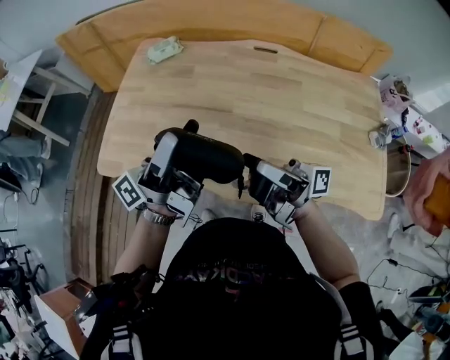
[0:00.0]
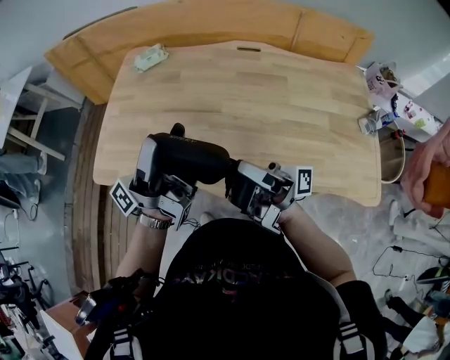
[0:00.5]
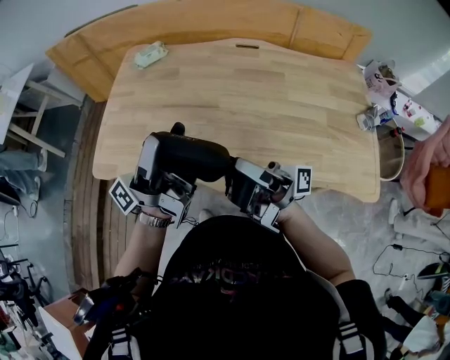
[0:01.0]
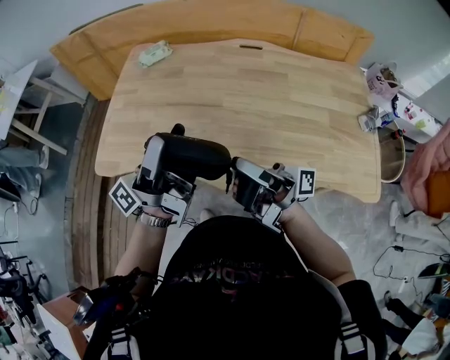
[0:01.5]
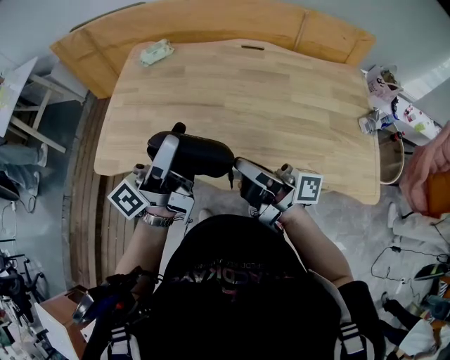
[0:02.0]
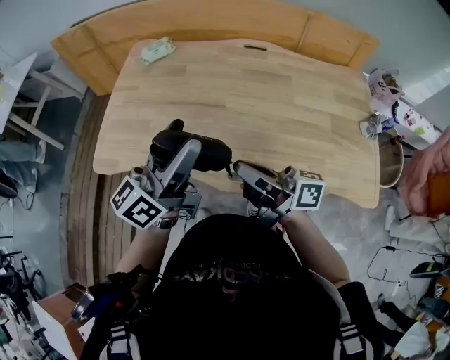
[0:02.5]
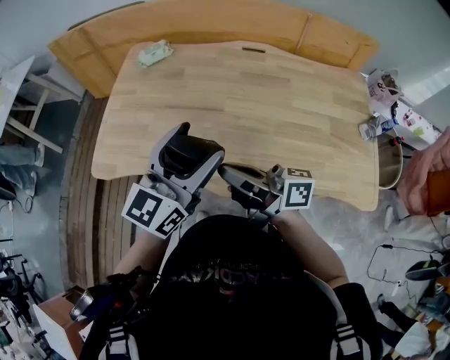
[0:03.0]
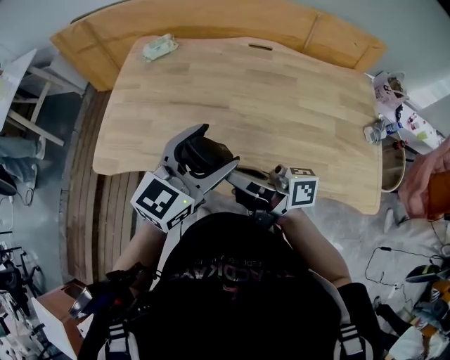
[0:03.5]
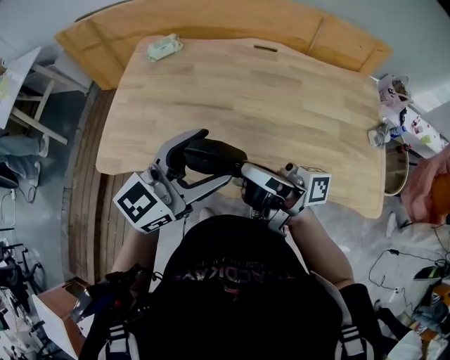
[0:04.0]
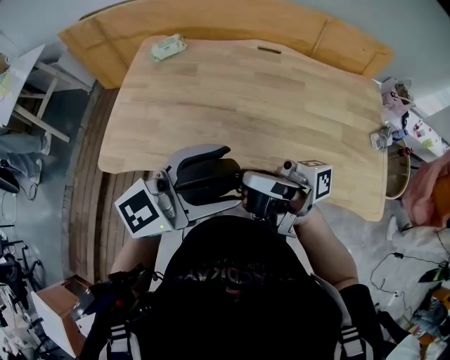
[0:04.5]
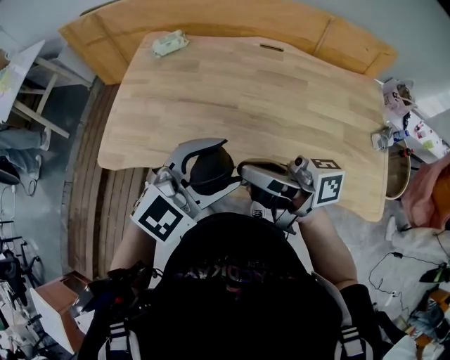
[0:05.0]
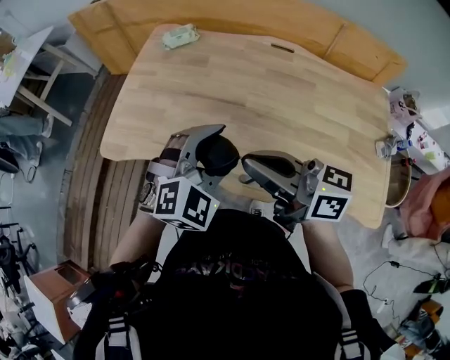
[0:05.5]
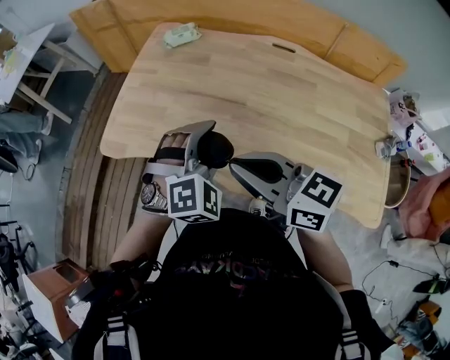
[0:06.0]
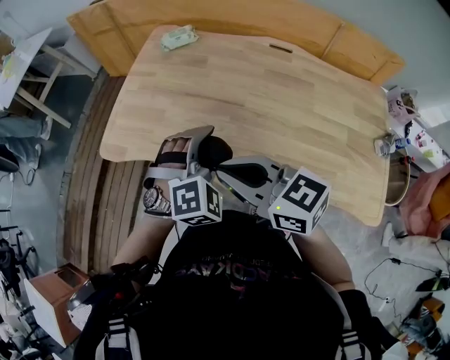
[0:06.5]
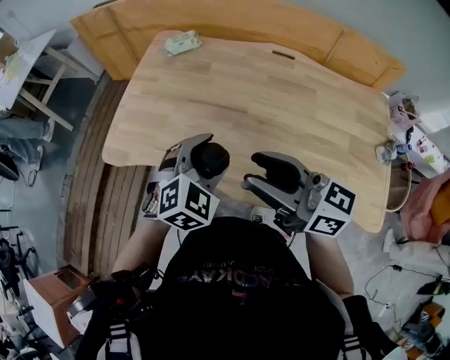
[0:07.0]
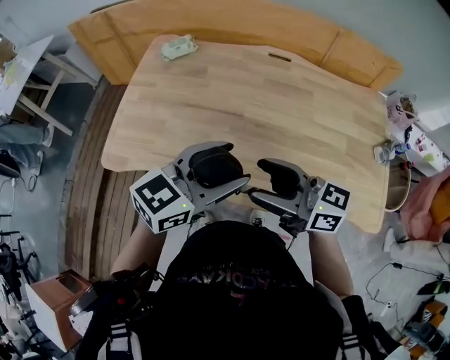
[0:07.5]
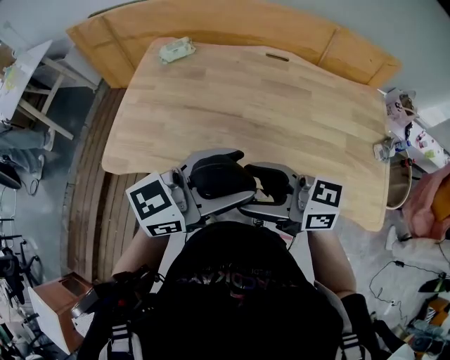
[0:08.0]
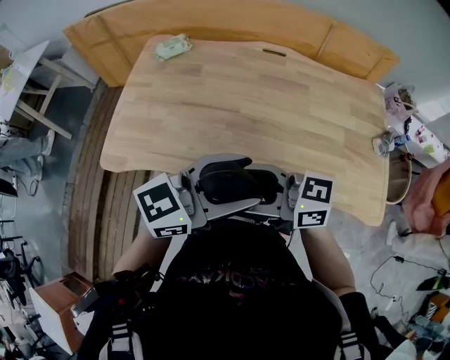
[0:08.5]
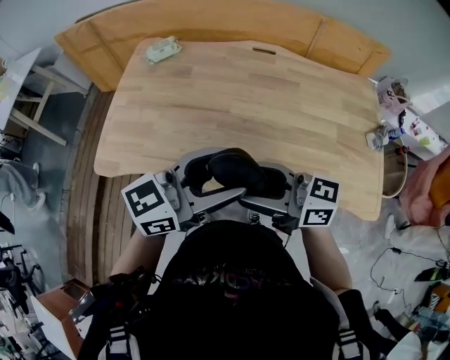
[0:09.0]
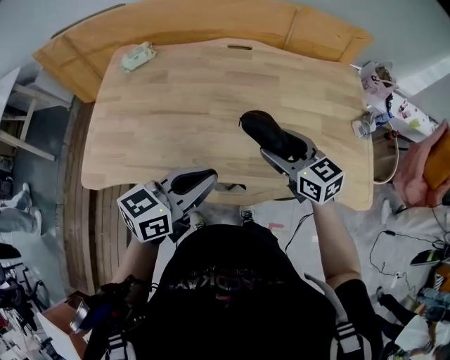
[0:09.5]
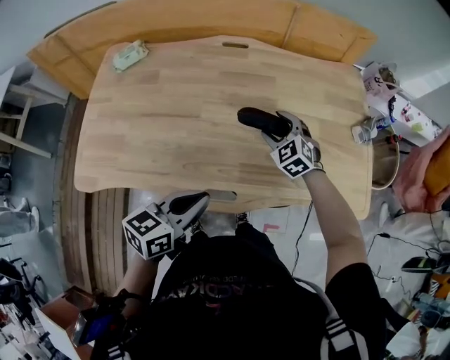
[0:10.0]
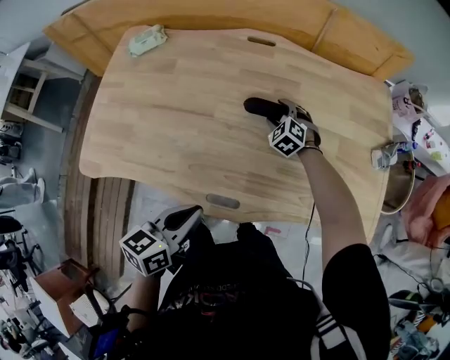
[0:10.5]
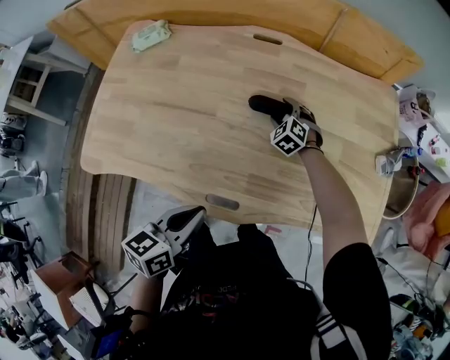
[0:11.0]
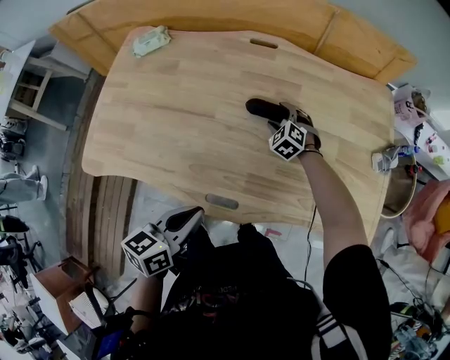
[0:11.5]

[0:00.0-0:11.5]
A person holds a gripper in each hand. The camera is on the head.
0:00.0 to 0:02.0: The right gripper closes its fingers.
0:02.0 to 0:04.0: The left gripper moves to the right, roughly 5 cm, and rotates around the line of its fingers by some 50 degrees, clockwise from behind.
0:04.0 to 0:06.0: The left gripper heads downward, covering about 10 cm, and tilts its fingers some 40 degrees downward. The right gripper tilts its fingers approximately 40 degrees downward.
0:06.0 to 0:07.5: The left gripper travels upward by roughly 5 cm, and changes its angle by about 70 degrees, while the right gripper ends up roughly 5 cm from where it was, and opens.
0:07.5 to 0:09.5: The right gripper changes place by about 20 cm, and turns by about 40 degrees; the left gripper shifts some 5 cm downward, and closes up.
0:09.5 to 0:11.5: The left gripper heads downward, covering some 10 cm, and turns by some 30 degrees. Meanwhile the right gripper shifts roughly 30 cm downward and forward, and rotates about 60 degrees.

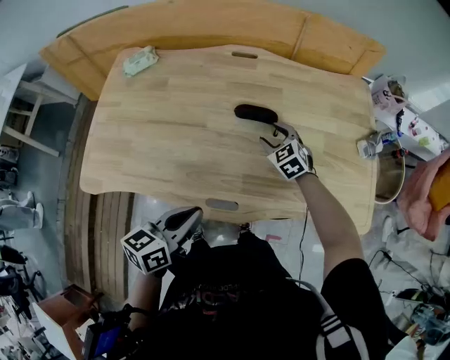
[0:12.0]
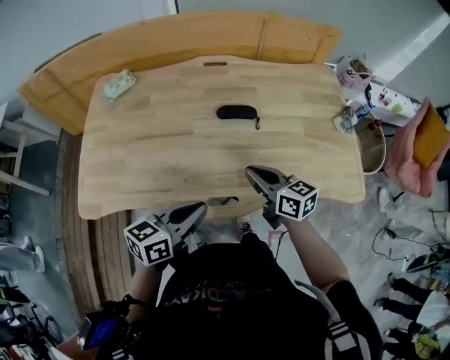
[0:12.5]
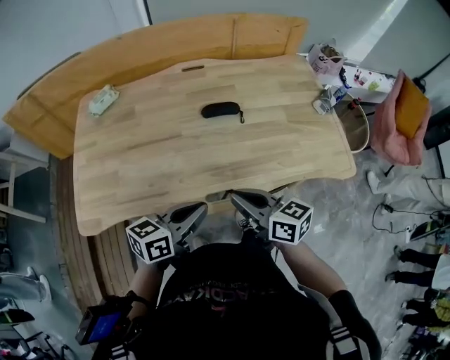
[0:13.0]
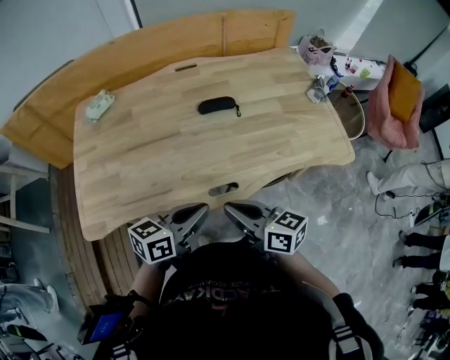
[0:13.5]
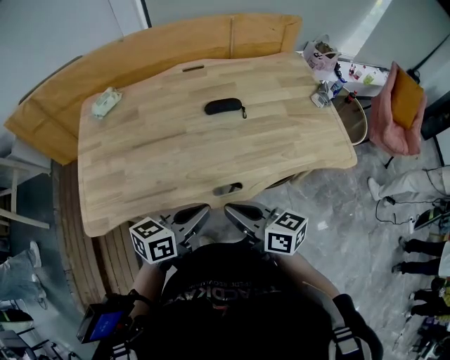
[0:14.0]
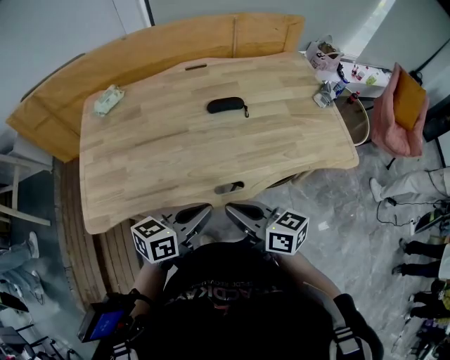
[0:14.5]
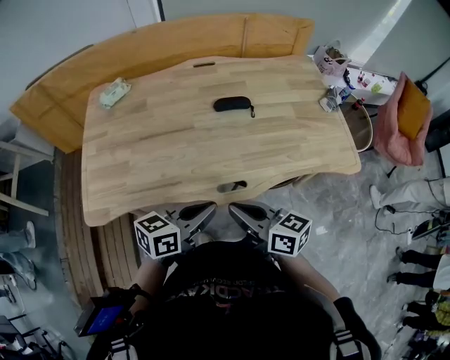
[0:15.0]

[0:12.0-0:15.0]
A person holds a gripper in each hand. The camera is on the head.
0:12.0 to 0:13.5: The left gripper changes place by approximately 5 cm, and turns by some 30 degrees. Meanwhile the right gripper moves backward and upward, roughly 35 cm, rolls clockwise, seen from behind, by roughly 60 degrees, and closes up.
0:13.5 to 0:15.0: The grippers move only a little.

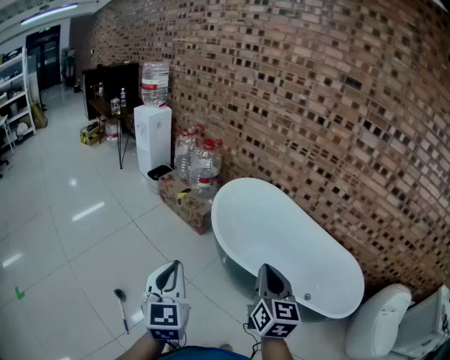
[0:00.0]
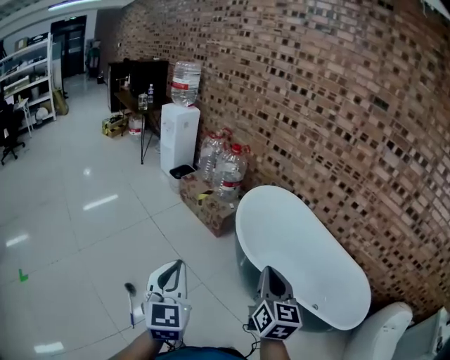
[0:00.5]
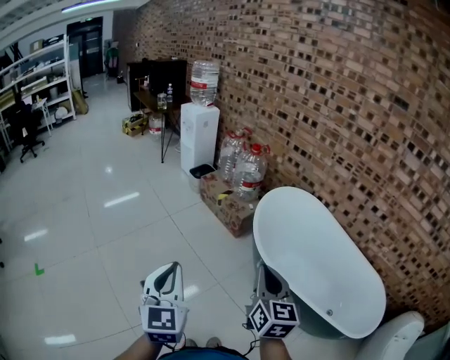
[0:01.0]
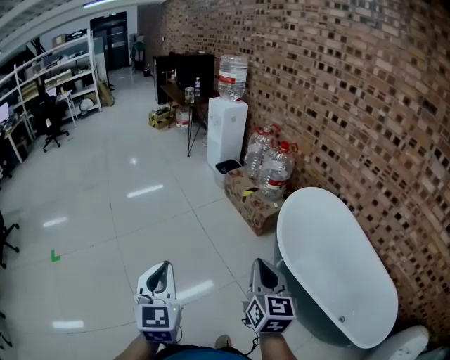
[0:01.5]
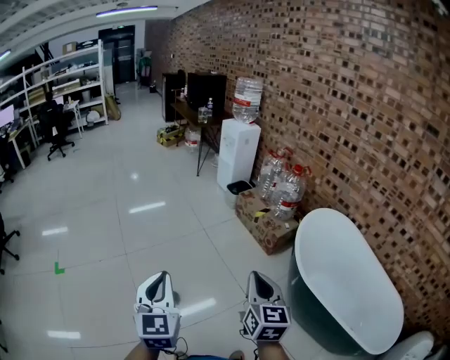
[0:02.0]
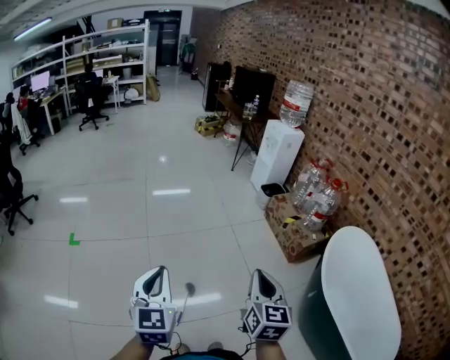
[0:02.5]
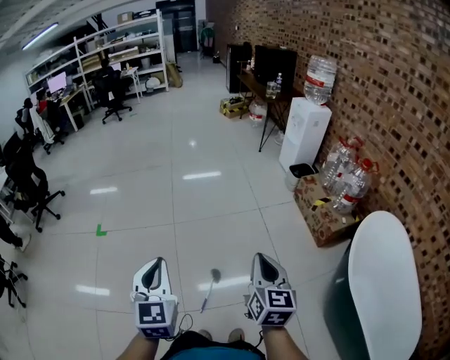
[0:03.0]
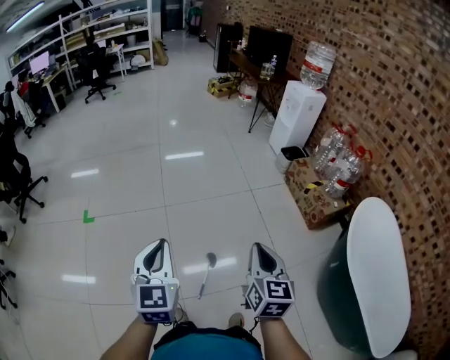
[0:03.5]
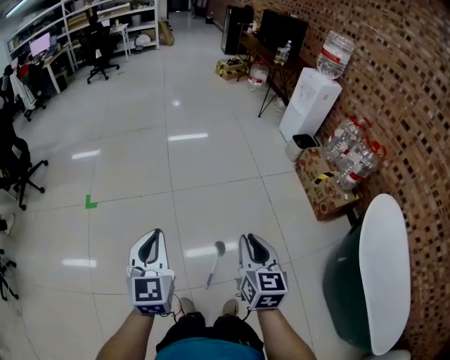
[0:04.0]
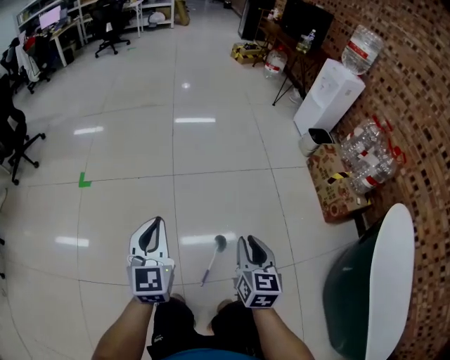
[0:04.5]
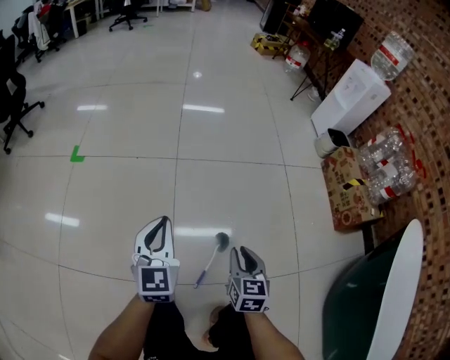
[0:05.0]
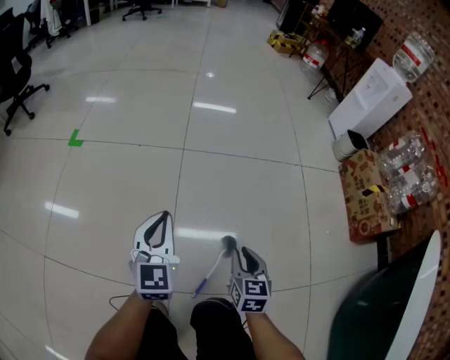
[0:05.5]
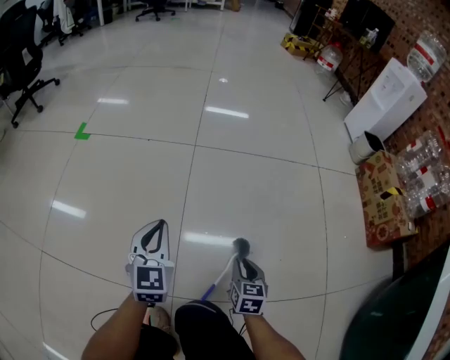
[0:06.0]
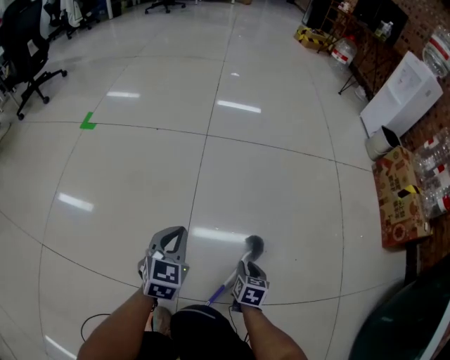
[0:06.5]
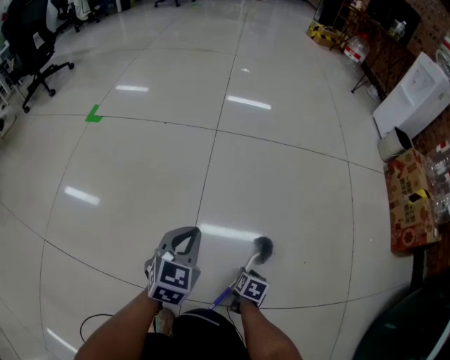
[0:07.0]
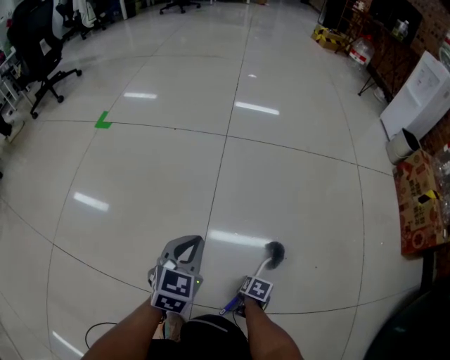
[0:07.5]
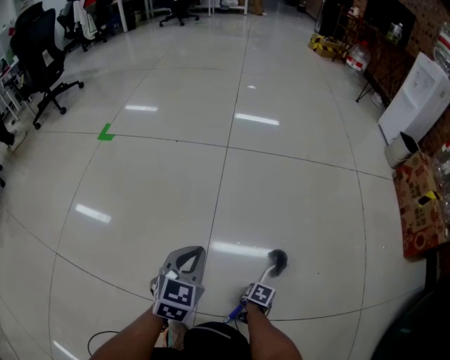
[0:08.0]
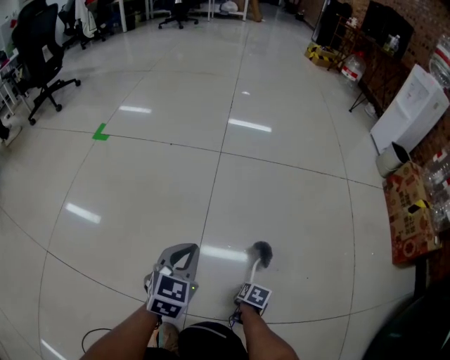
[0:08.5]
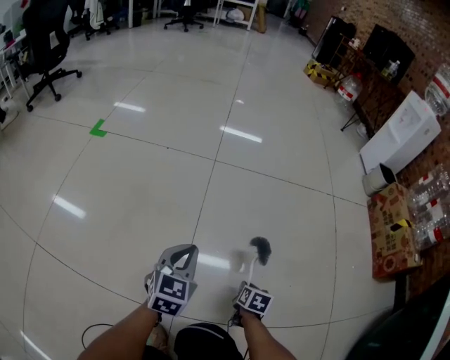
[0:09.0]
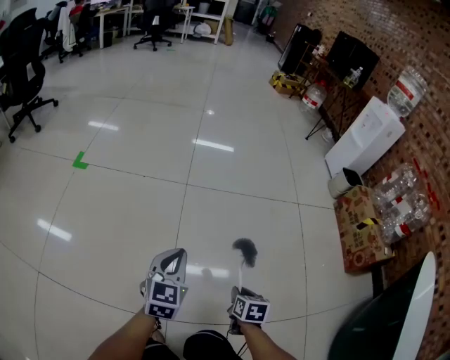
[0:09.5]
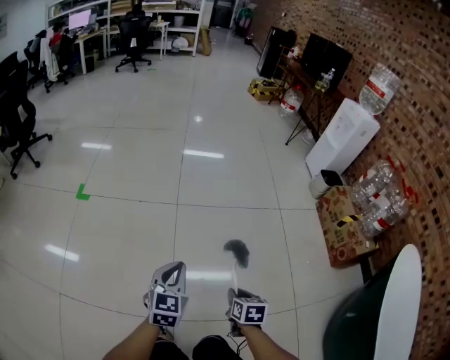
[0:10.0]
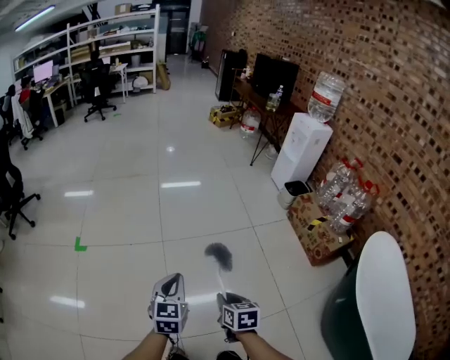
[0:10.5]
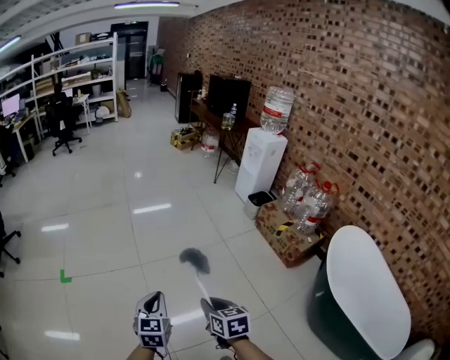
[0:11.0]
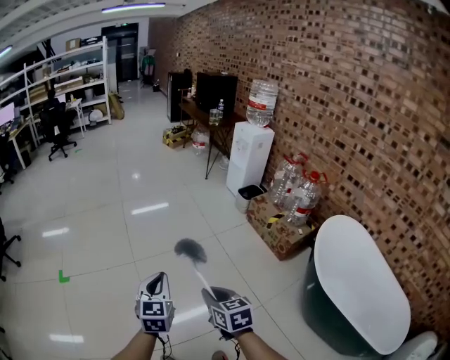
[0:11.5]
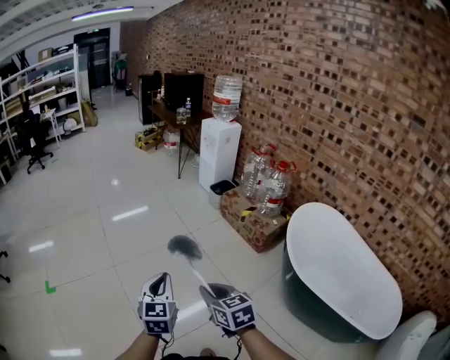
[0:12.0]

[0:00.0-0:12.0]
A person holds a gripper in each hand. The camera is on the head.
0:00.0 to 0:02.0: The left gripper ends up approximately 35 cm from where it was, and changes its angle by approximately 30 degrees; the right gripper shifts by roughly 35 cm, and turns by some 30 degrees.
0:02.0 to 0:04.0: The left gripper heads to the left, covering about 35 cm. Meanwhile the right gripper goes approximately 40 cm to the left and forward, and turns by some 20 degrees.
0:04.0 to 0:06.0: Both grippers move downward, some 70 cm. The right gripper swivels some 20 degrees.
0:06.0 to 0:08.0: The left gripper is displaced downward by roughly 10 cm; the right gripper shifts about 30 cm downward, and tips its fingers downward by roughly 40 degrees.
0:08.0 to 0:10.0: Both grippers travel together upward, some 50 cm. The right gripper turns by some 30 degrees.
0:10.0 to 0:12.0: Both grippers move upward and to the right, approximately 50 cm. The right gripper swivels approximately 20 degrees, while the left gripper turns by roughly 20 degrees.
